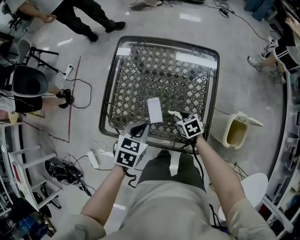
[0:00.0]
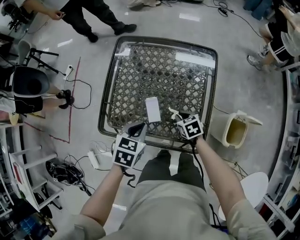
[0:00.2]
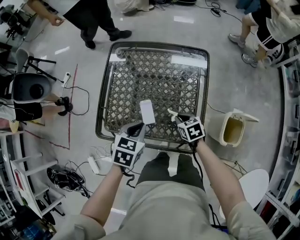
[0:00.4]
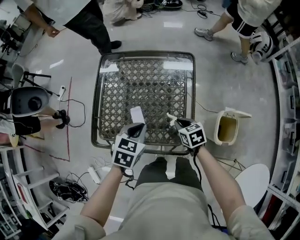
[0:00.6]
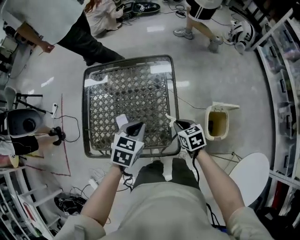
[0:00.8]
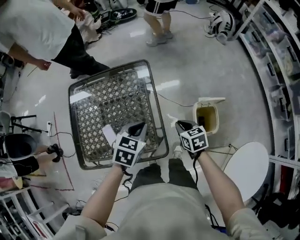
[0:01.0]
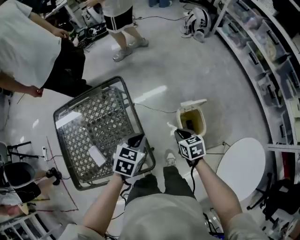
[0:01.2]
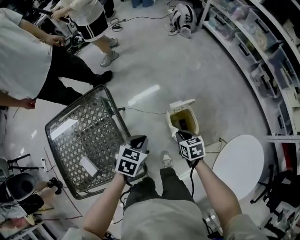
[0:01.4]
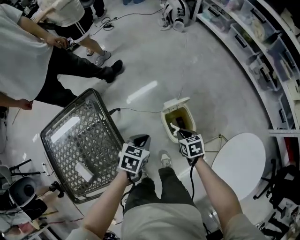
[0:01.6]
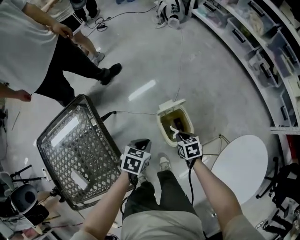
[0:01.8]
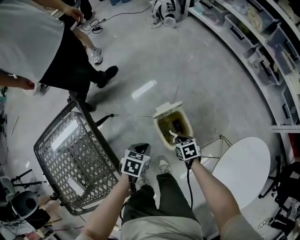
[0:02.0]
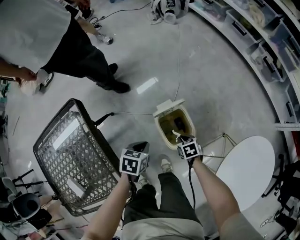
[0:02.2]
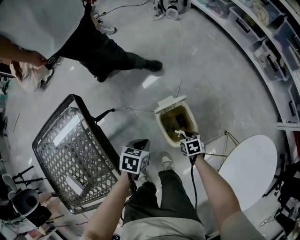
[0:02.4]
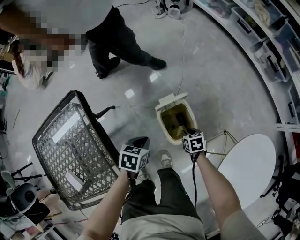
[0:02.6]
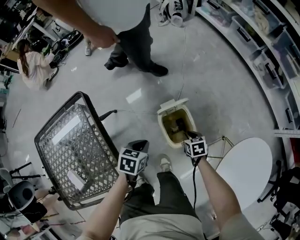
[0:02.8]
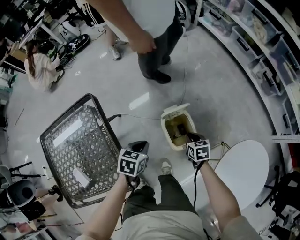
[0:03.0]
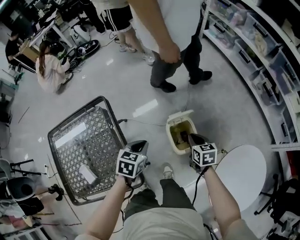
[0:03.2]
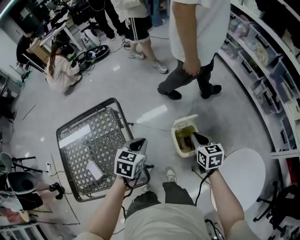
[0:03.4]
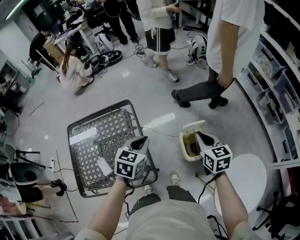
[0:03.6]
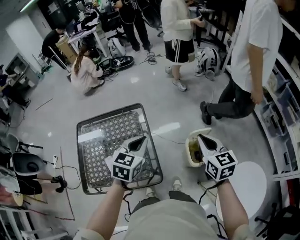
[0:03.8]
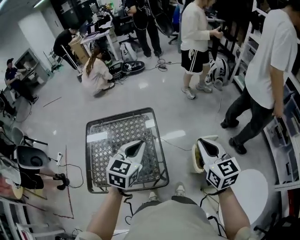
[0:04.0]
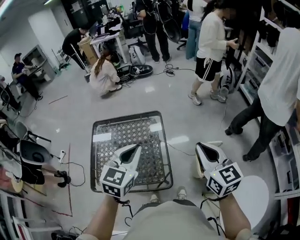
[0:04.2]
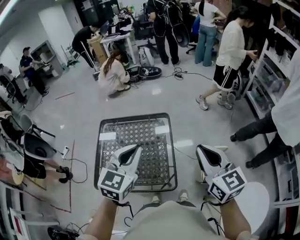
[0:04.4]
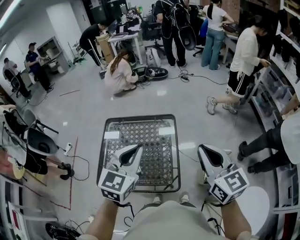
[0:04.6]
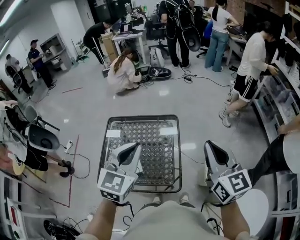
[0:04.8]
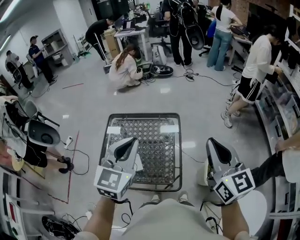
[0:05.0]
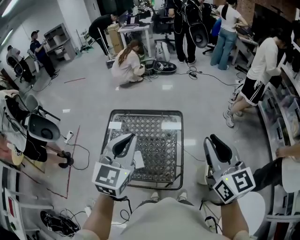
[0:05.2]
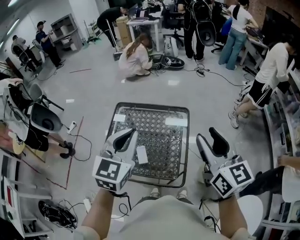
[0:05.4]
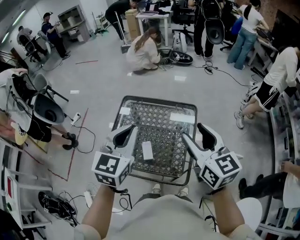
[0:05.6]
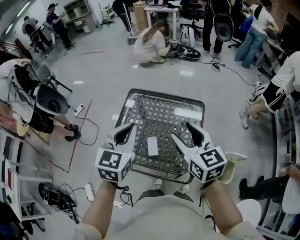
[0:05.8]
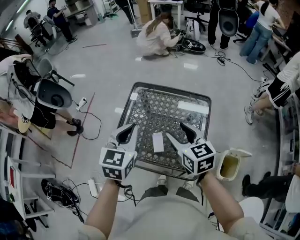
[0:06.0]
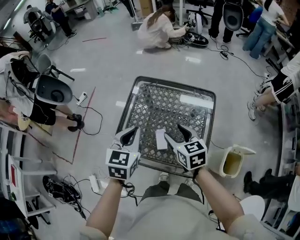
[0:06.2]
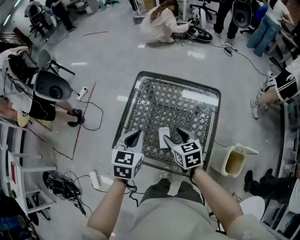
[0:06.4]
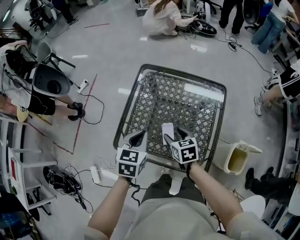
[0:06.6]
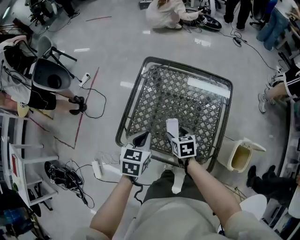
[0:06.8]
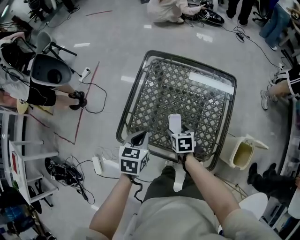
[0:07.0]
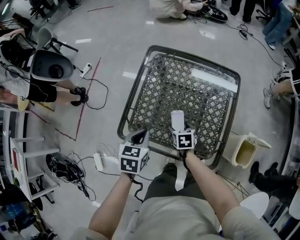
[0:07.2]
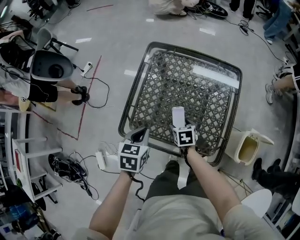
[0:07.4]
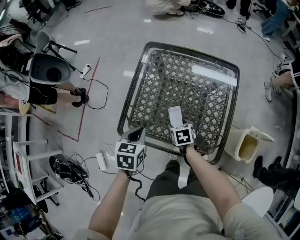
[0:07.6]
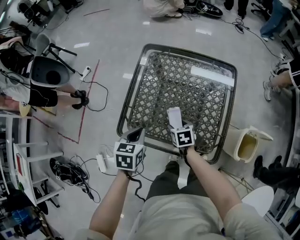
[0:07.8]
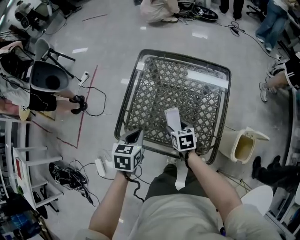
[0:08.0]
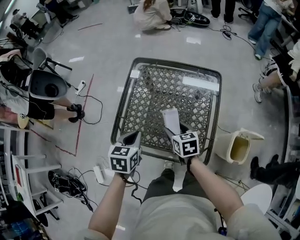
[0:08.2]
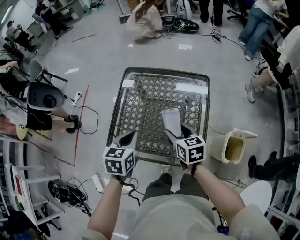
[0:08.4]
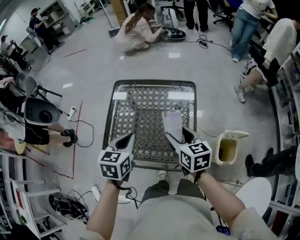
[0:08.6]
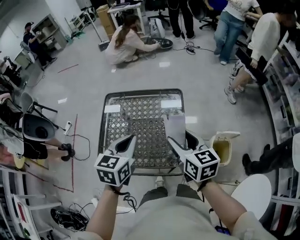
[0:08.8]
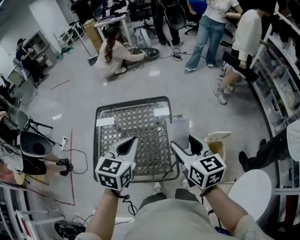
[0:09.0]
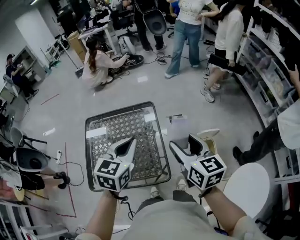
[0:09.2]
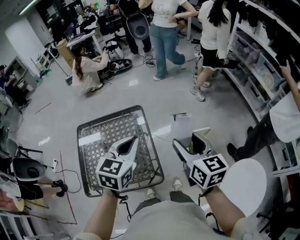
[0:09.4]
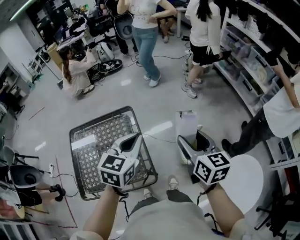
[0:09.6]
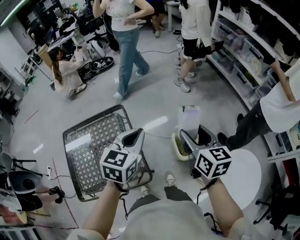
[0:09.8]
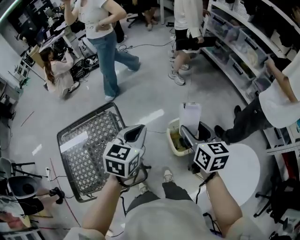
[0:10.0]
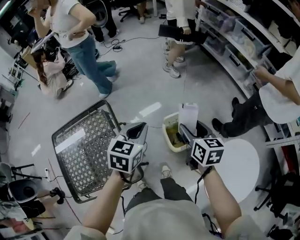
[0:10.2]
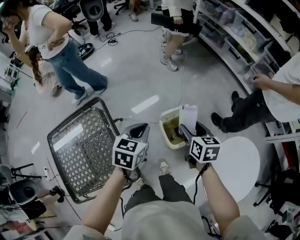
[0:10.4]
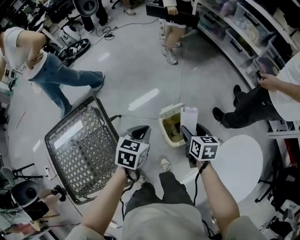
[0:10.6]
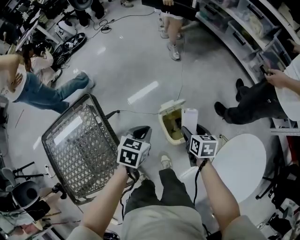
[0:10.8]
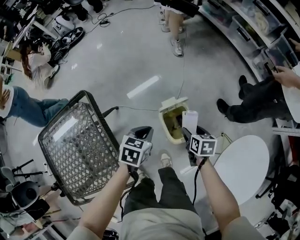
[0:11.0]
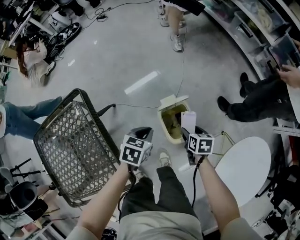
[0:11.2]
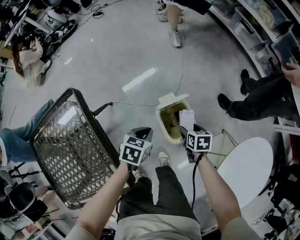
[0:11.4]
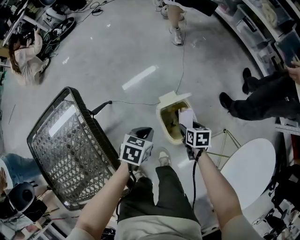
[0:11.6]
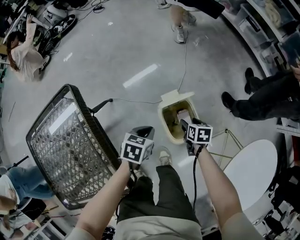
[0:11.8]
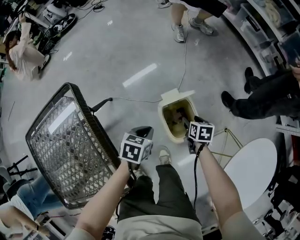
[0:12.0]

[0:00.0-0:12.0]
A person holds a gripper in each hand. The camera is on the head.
0:00.0 to 0:01.6: The two grippers travel together, about 50 cm. The left gripper turns by about 40 degrees. Meanwhile the right gripper rotates around the line of its fingers by approximately 40 degrees, clockwise from behind.
0:01.6 to 0:03.0: The right gripper is displaced to the right by about 5 cm, and goes downward and returns, roughly 20 cm each way. Meanwhile the left gripper reaches some 15 cm downward, then returns.
0:03.0 to 0:04.4: Both grippers move upward, about 50 cm. The right gripper tilts its fingers some 50 degrees upward. Meanwhile the left gripper tips its fingers upward by some 30 degrees.
0:04.4 to 0:06.0: The right gripper is displaced to the left, downward and forward by some 35 cm, changes its angle by roughly 30 degrees, and opens its fingers; the left gripper shifts approximately 20 cm to the left, and rotates roughly 30 degrees.
0:06.0 to 0:07.6: The two grippers go approximately 30 cm downward. The right gripper tips its fingers downward by some 40 degrees; the left gripper turns by about 30 degrees.
0:07.6 to 0:09.0: The left gripper moves roughly 35 cm, and swivels roughly 40 degrees, while the right gripper travels upward by approximately 40 cm, and tilts its fingers some 40 degrees upward.
0:09.0 to 0:10.4: The left gripper moves roughly 40 cm, and changes its angle by approximately 30 degrees. The right gripper shifts by some 40 cm, and turns by some 40 degrees.
0:10.4 to 0:12.0: Both grippers travel together downward, approximately 35 cm. The right gripper changes its angle by roughly 30 degrees. The left gripper changes its angle by roughly 20 degrees.

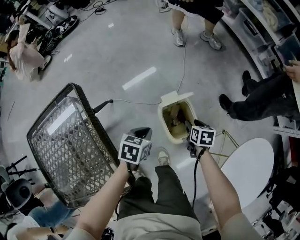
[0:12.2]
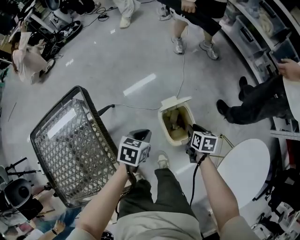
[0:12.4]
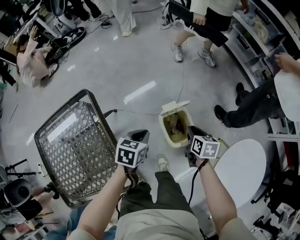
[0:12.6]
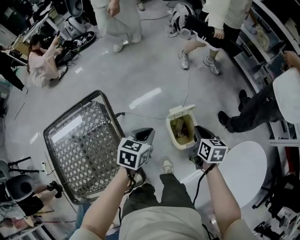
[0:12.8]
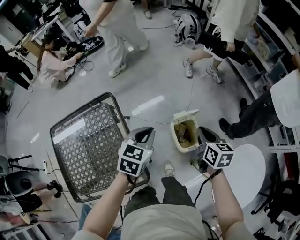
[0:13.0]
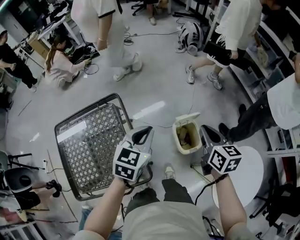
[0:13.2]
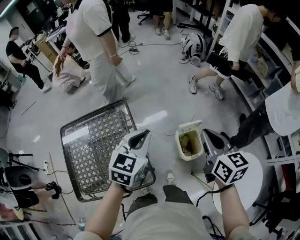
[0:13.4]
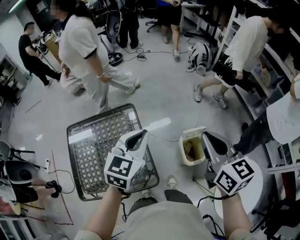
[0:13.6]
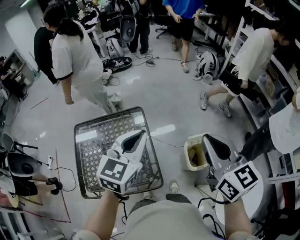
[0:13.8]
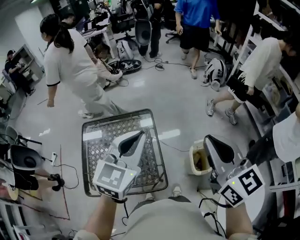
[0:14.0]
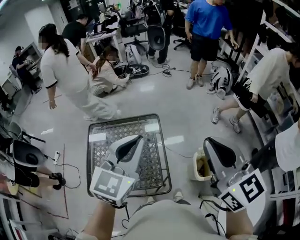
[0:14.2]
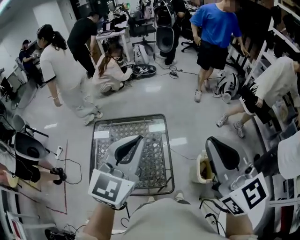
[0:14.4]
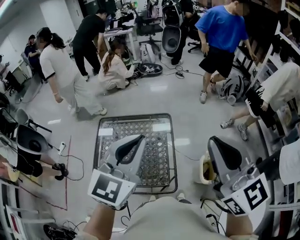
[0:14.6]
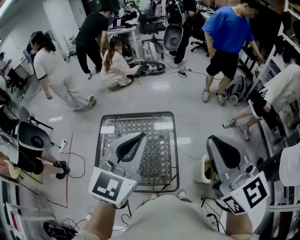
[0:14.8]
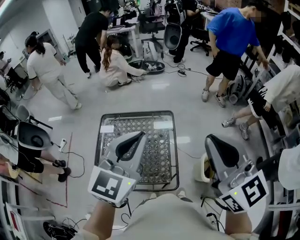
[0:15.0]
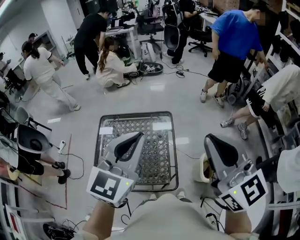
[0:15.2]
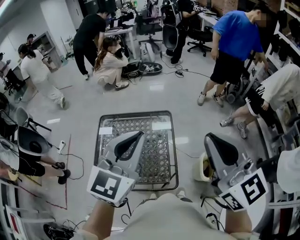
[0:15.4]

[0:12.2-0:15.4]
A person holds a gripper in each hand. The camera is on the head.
0:12.2 to 0:13.8: Both grippers move upward, roughly 60 cm. The left gripper tilts its fingers about 40 degrees upward, while the right gripper tilts its fingers approximately 50 degrees upward, and closes its fingers.
0:13.8 to 0:15.4: The grippers both shift to the left and upward by roughly 20 cm. The right gripper changes its angle by approximately 20 degrees.

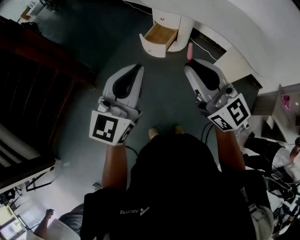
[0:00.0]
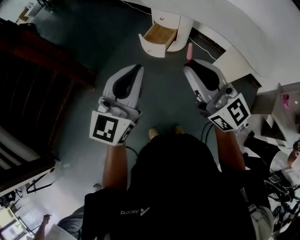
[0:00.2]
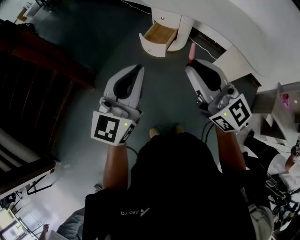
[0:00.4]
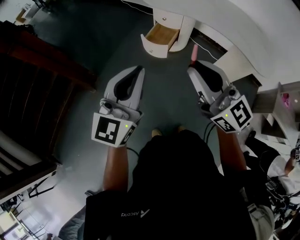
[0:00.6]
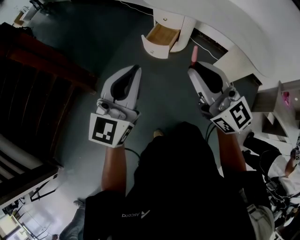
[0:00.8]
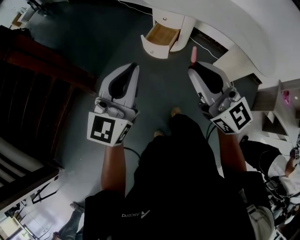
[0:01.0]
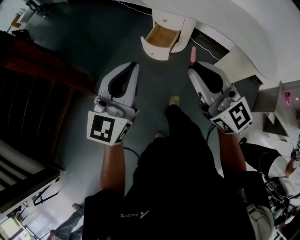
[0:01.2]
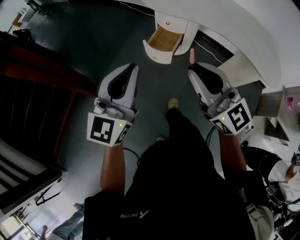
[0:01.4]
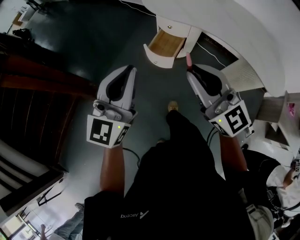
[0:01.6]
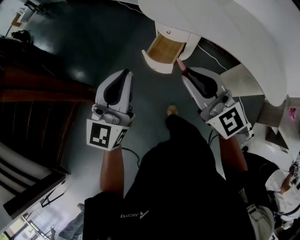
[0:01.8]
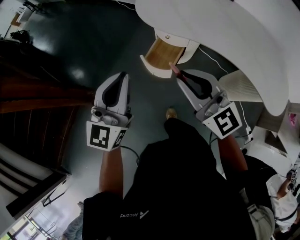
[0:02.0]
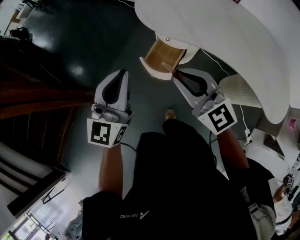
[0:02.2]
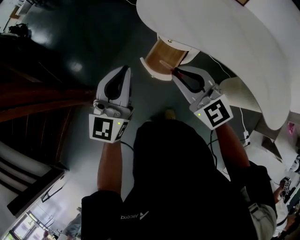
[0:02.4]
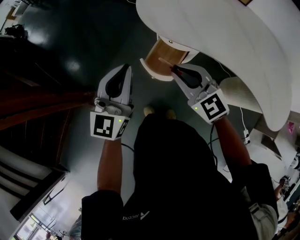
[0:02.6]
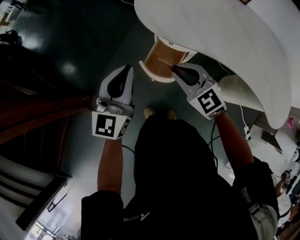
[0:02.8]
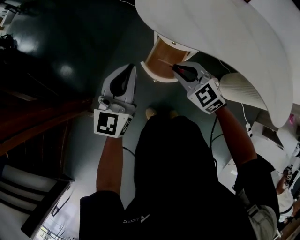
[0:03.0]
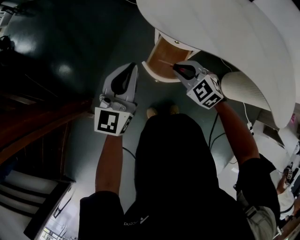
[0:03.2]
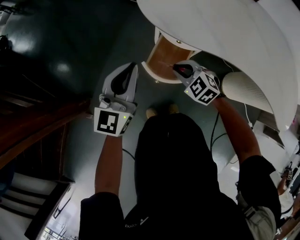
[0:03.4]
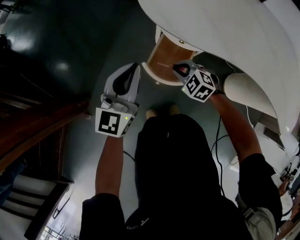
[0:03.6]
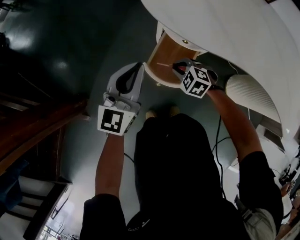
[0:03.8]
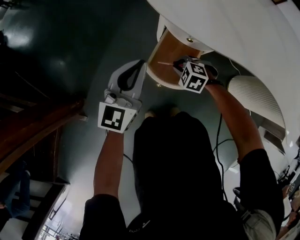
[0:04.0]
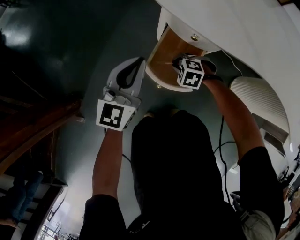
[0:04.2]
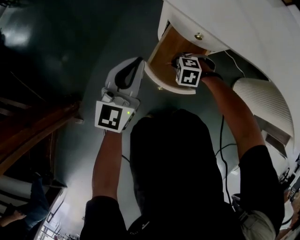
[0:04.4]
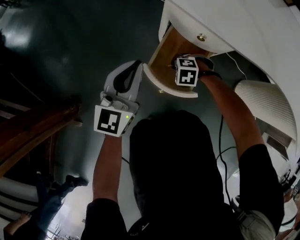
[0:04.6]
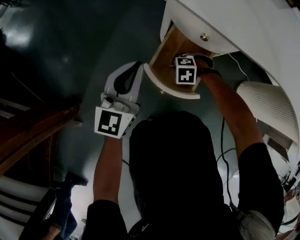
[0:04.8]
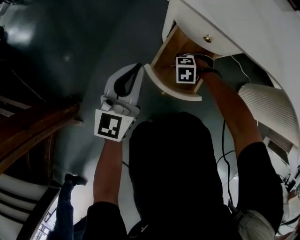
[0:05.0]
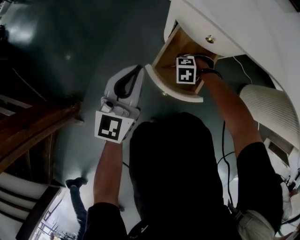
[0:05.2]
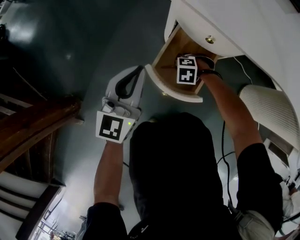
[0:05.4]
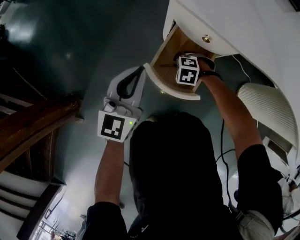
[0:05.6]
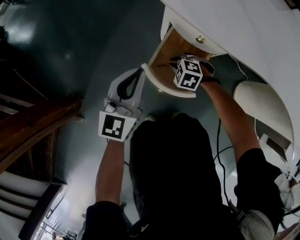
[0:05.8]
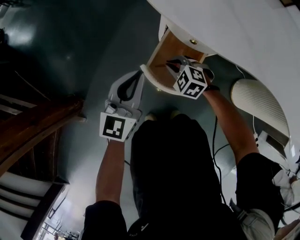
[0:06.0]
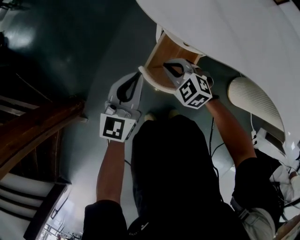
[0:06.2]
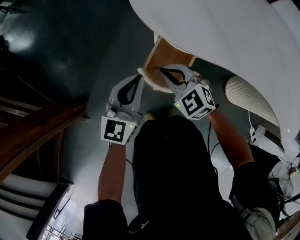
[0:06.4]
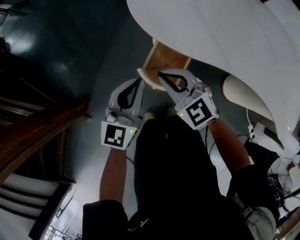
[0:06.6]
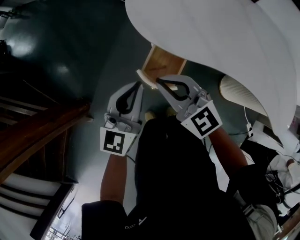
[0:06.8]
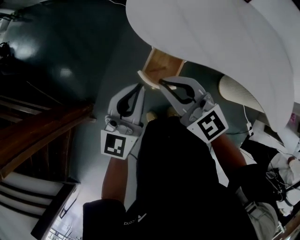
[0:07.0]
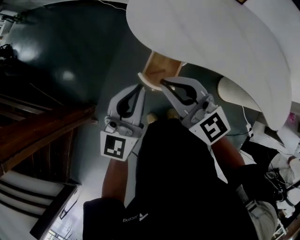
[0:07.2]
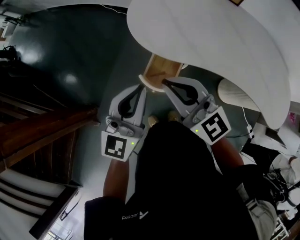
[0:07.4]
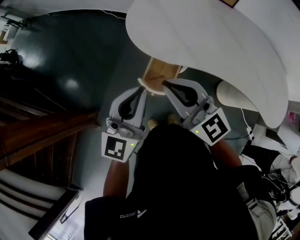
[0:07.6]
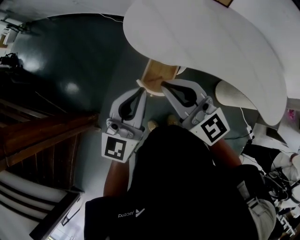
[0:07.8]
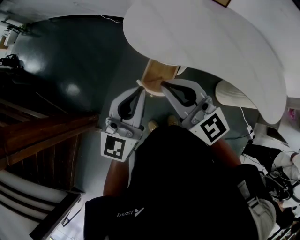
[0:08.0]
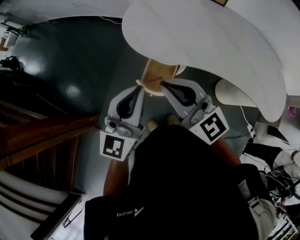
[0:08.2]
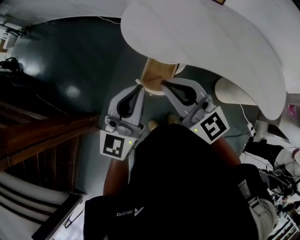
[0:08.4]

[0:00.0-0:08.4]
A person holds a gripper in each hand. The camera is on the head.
0:00.0 to 0:01.4: The left gripper shifts about 15 cm forward and to the left, while the right gripper shifts roughly 10 cm forward.
0:01.4 to 0:02.8: The left gripper moves forward, some 30 cm; the right gripper goes about 35 cm forward and downward, and tilts its fingers about 30 degrees downward.
0:02.8 to 0:04.2: The right gripper moves downward, some 40 cm, and tips its fingers downward by roughly 50 degrees; the left gripper shifts some 25 cm downward.
0:04.2 to 0:05.6: The right gripper is displaced downward by about 10 cm, while the left gripper travels downward by some 5 cm.
0:05.6 to 0:07.0: The left gripper travels upward by approximately 30 cm, while the right gripper travels upward by about 60 cm, and angles its fingers upward, by roughly 70 degrees.
0:07.0 to 0:08.4: The grippers both shift upward and backward by approximately 10 cm.
